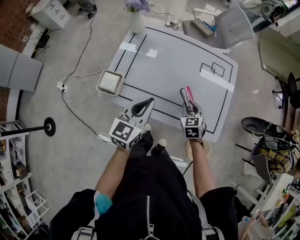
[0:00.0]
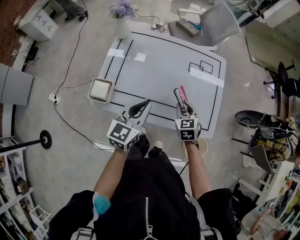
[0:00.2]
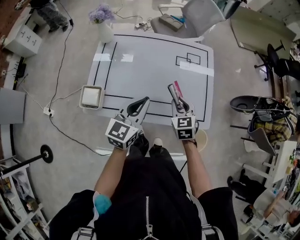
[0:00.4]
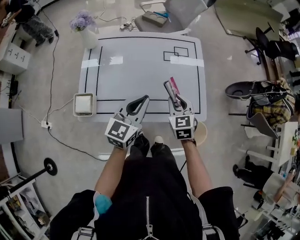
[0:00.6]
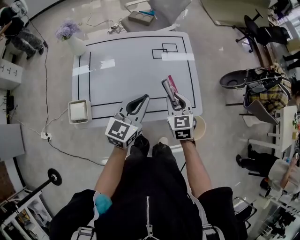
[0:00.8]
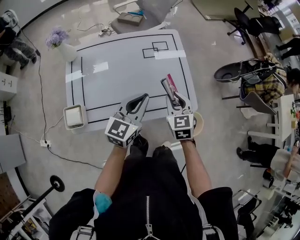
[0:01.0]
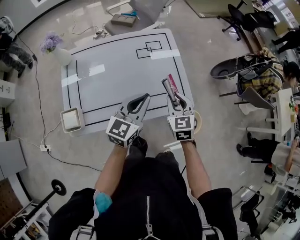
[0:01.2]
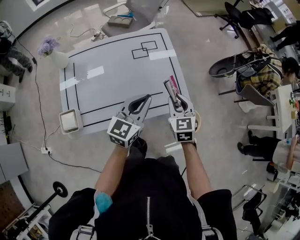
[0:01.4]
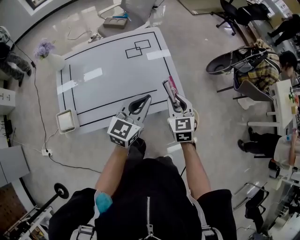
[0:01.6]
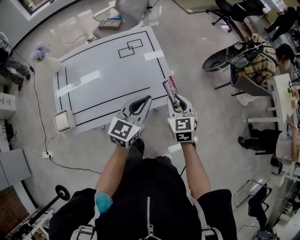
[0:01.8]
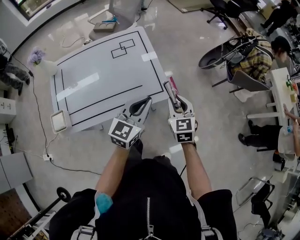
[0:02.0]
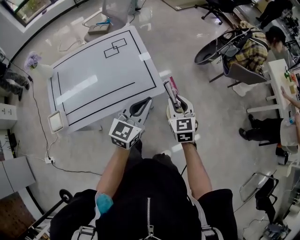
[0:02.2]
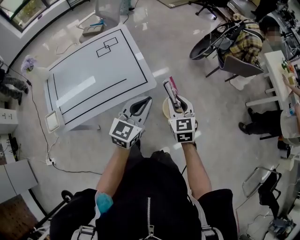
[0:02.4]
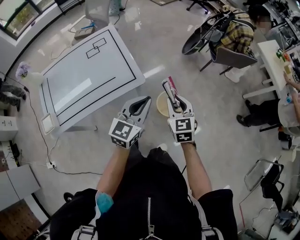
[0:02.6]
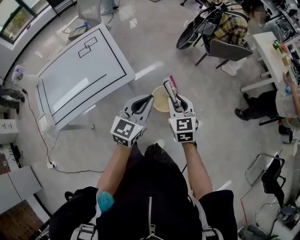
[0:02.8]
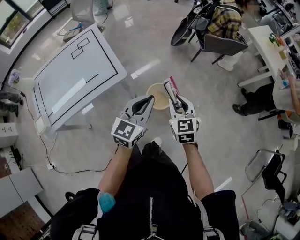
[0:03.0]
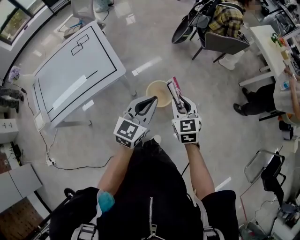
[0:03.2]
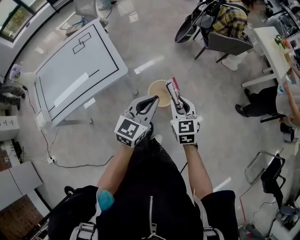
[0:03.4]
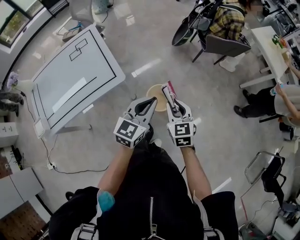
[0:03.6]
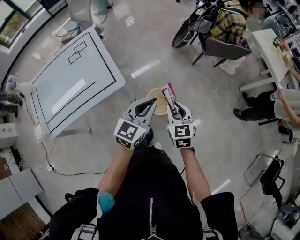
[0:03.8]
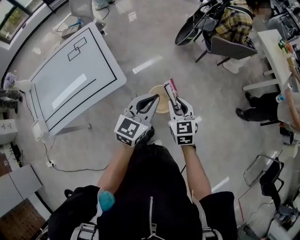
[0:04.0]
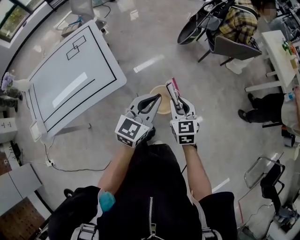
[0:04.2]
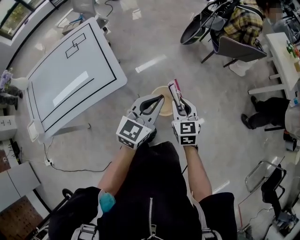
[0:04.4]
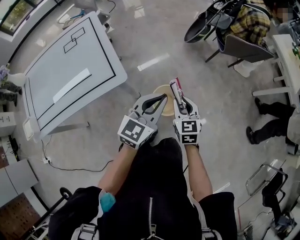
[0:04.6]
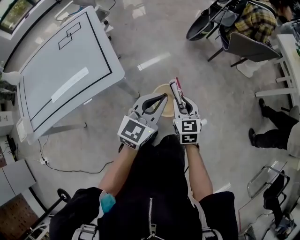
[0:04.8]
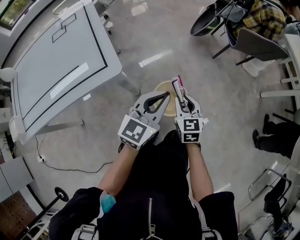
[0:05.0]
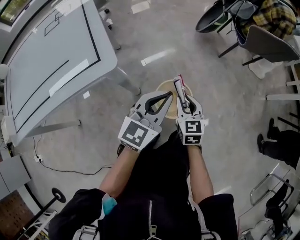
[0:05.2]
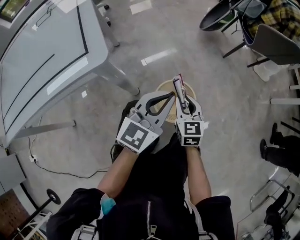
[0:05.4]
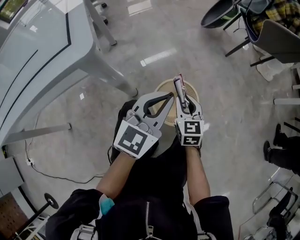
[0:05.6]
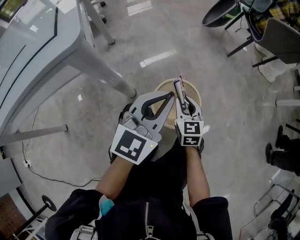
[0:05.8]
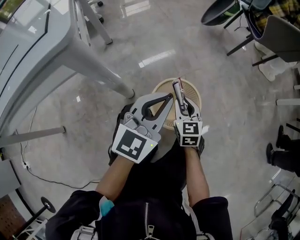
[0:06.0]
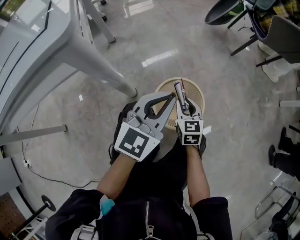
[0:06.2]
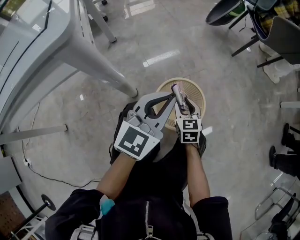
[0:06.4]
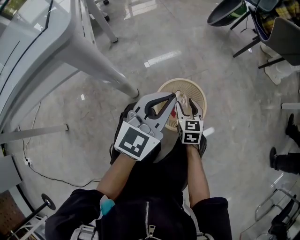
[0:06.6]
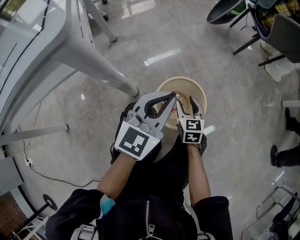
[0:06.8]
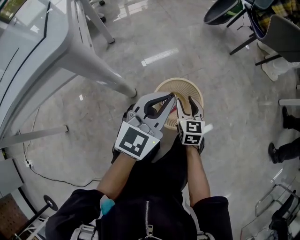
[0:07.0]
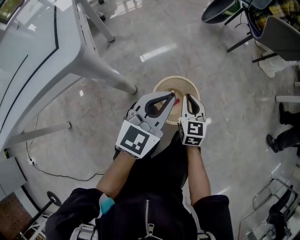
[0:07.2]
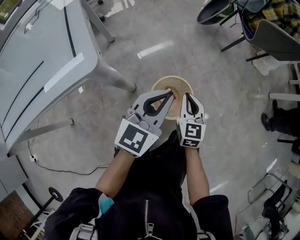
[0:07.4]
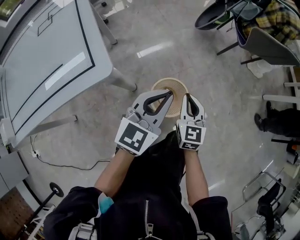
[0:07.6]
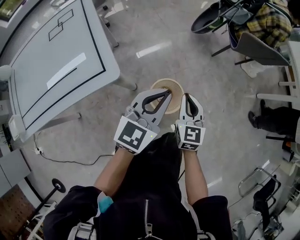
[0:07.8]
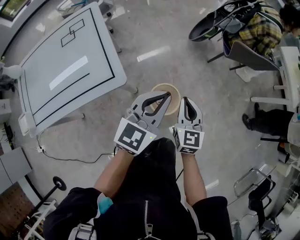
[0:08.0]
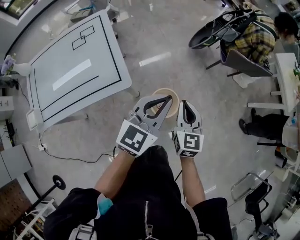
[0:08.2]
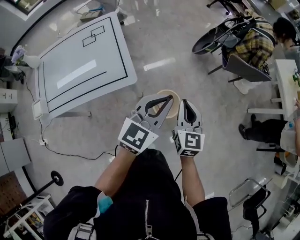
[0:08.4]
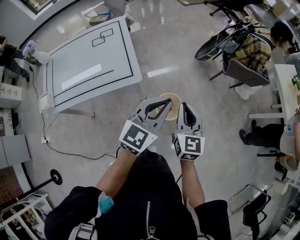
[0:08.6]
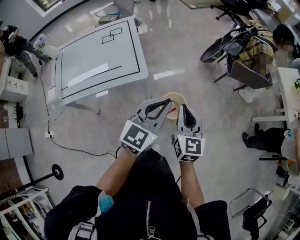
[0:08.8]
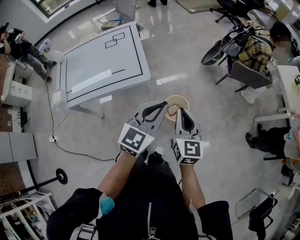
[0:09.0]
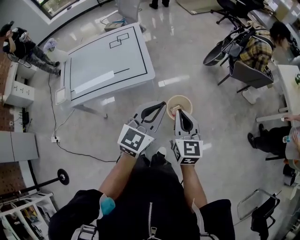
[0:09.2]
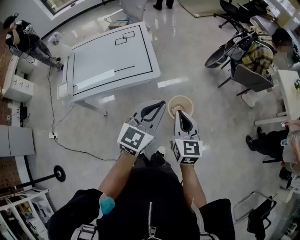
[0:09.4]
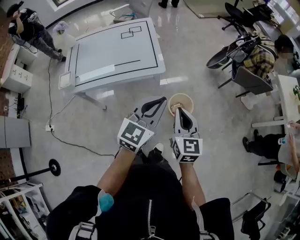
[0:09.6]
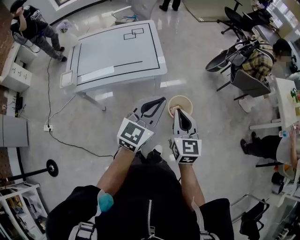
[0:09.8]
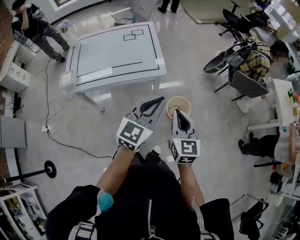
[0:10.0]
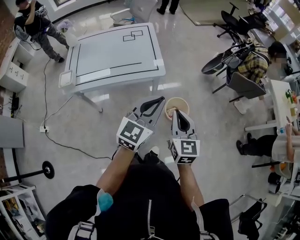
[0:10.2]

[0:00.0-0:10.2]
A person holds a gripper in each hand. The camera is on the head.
0.0 to 1.4 s: The right gripper moves roughly 20 cm, and rotates about 30 degrees; the left gripper moves some 20 cm, and changes its angle by approximately 30 degrees.
1.4 to 3.0 s: Both grippers are carried to the right, some 40 cm.
3.0 to 4.4 s: The left gripper heads forward and downward, covering roughly 15 cm. The right gripper goes about 15 cm downward and forward.
4.4 to 5.8 s: Both grippers move downward, about 40 cm.
5.8 to 7.2 s: The right gripper reaches approximately 10 cm downward, then returns, and opens, then closes again.
7.2 to 8.8 s: Both grippers move upward, about 60 cm.
8.8 to 10.2 s: The grippers both shift backward and to the left by roughly 20 cm.

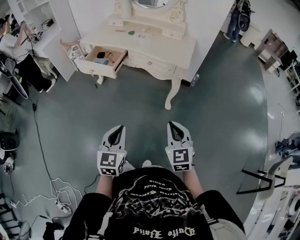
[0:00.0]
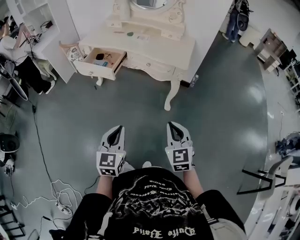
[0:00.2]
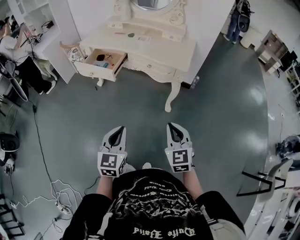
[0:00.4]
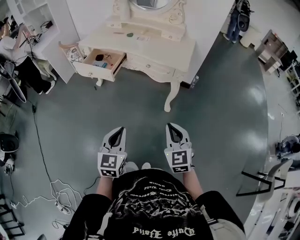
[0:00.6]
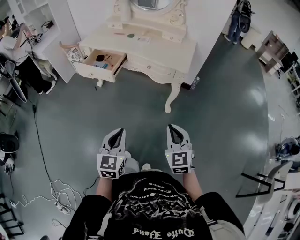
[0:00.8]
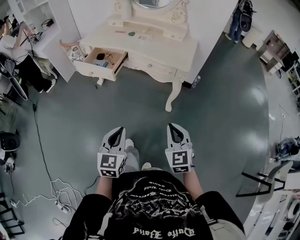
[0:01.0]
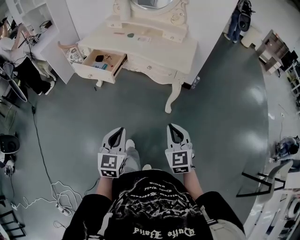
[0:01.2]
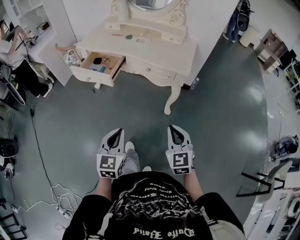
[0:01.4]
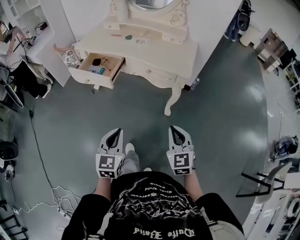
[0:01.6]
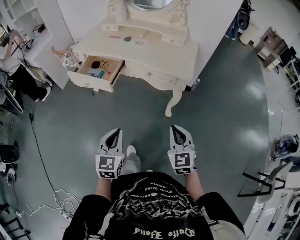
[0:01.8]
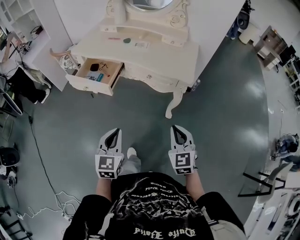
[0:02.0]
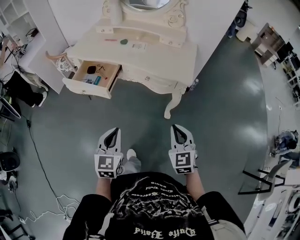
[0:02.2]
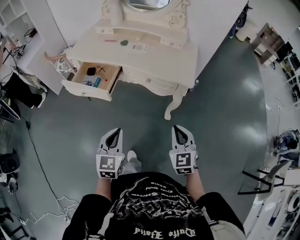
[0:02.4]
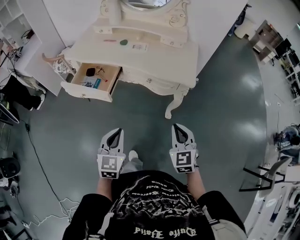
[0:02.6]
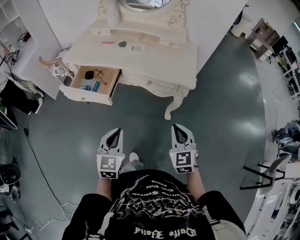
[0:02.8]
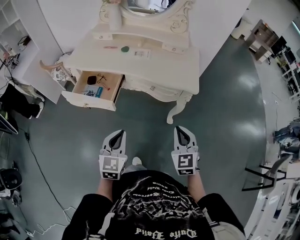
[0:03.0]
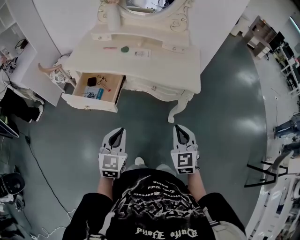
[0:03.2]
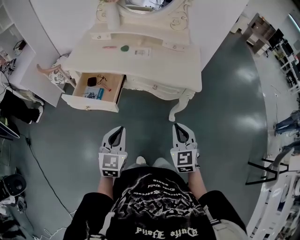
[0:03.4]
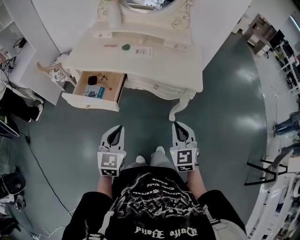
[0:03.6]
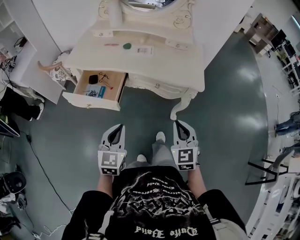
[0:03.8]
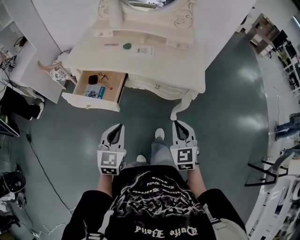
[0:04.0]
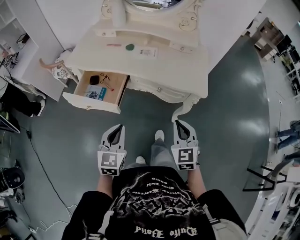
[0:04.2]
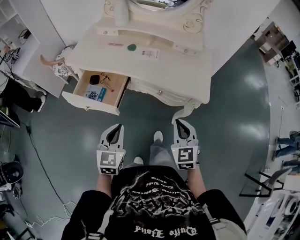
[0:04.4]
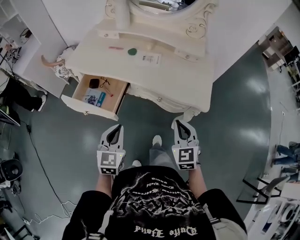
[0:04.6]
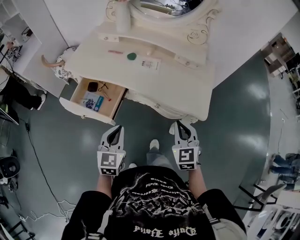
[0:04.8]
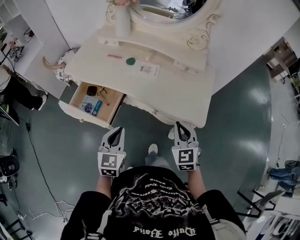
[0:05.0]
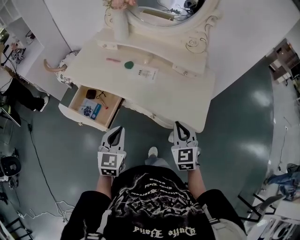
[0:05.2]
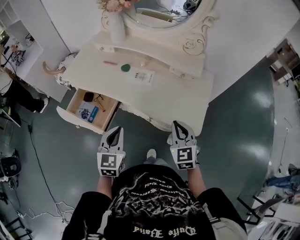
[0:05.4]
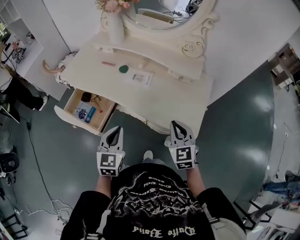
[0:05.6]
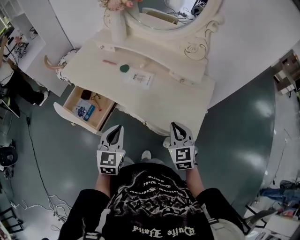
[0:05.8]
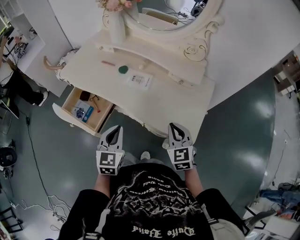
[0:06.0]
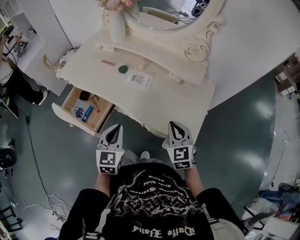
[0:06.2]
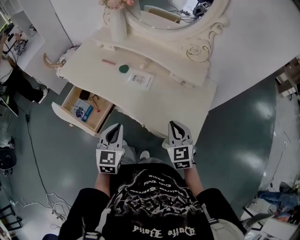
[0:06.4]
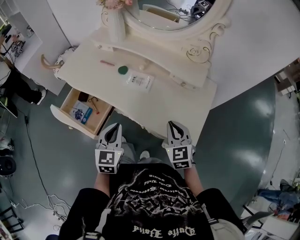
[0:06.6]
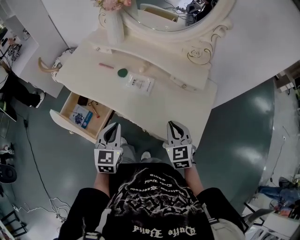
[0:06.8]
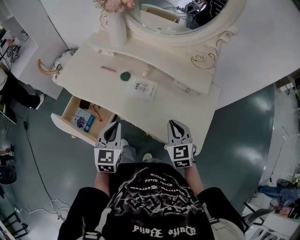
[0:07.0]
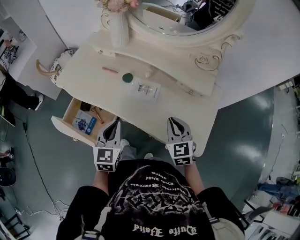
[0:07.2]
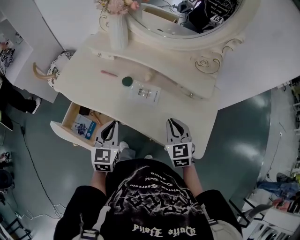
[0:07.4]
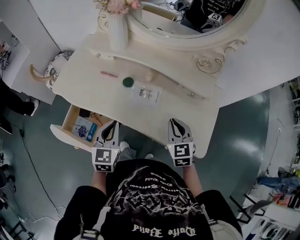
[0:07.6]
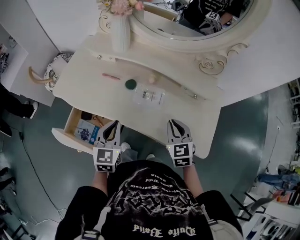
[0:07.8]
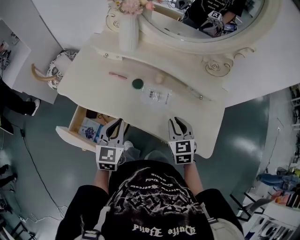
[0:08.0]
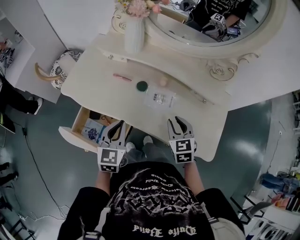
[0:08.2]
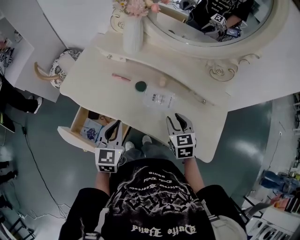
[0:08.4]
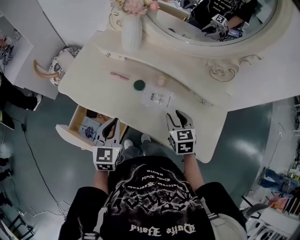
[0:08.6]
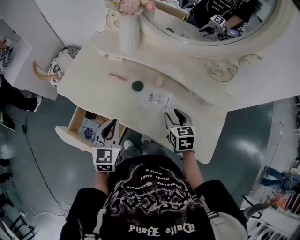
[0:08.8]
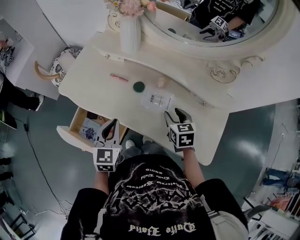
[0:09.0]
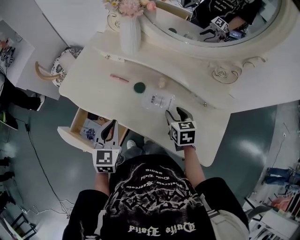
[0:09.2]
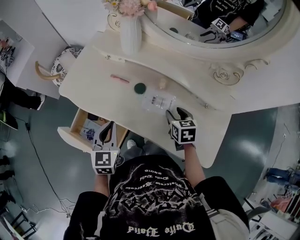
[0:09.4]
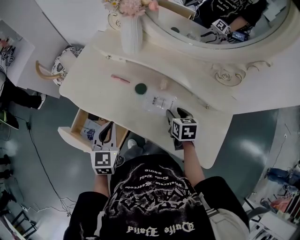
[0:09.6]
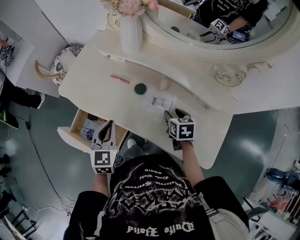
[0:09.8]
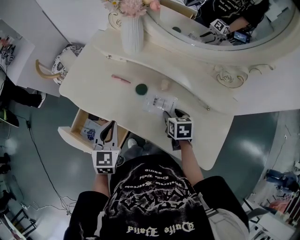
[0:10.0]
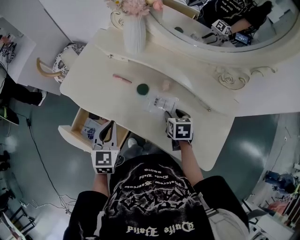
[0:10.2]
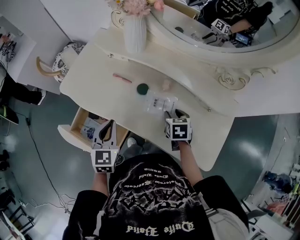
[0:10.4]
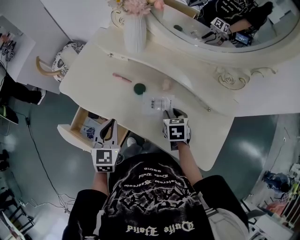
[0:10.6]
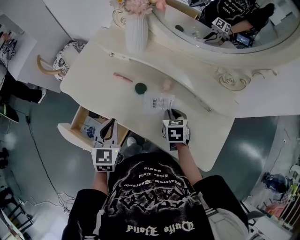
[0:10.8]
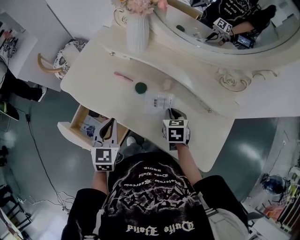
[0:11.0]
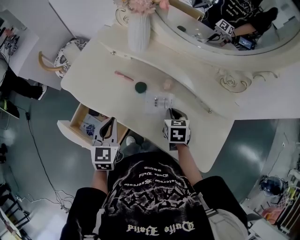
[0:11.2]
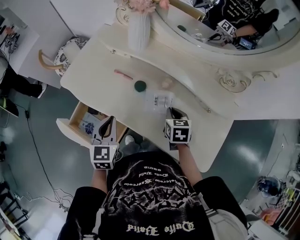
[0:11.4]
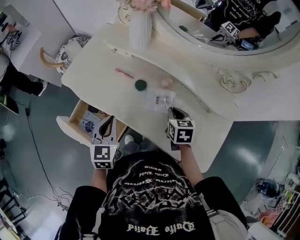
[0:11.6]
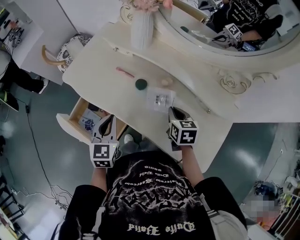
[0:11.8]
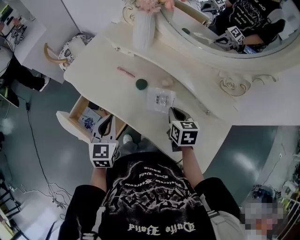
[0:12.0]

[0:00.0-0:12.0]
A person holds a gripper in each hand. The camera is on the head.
0.0 to 1.6 s: Both grippers move forward, roughly 10 cm.
1.6 to 3.0 s: Both grippers travel together forward and to the left, roughly 15 cm.
3.0 to 4.4 s: Both grippers travel together forward, roughly 10 cm.
4.4 to 6.0 s: The grippers both shift forward and to the right by some 20 cm.
6.0 to 7.6 s: Both grippers move forward and to the left, about 15 cm.
7.6 to 9.0 s: The right gripper travels forward by approximately 10 cm, and opens its fingers. The left gripper shifts by some 5 cm.
9.0 to 10.4 s: The right gripper is displaced downward by roughly 5 cm.
10.4 to 12.0 s: The right gripper heads upward, covering roughly 5 cm, and closes its fingers.

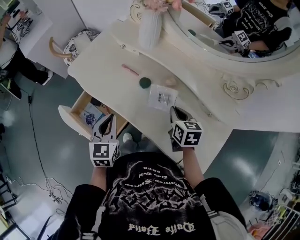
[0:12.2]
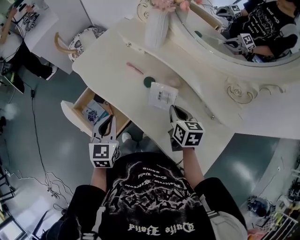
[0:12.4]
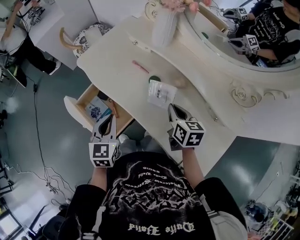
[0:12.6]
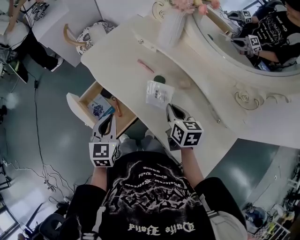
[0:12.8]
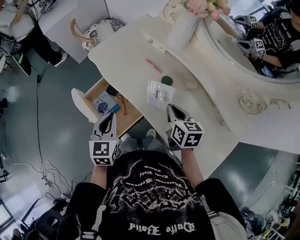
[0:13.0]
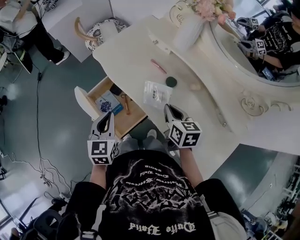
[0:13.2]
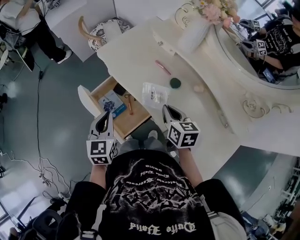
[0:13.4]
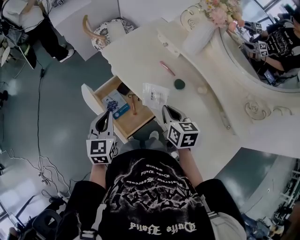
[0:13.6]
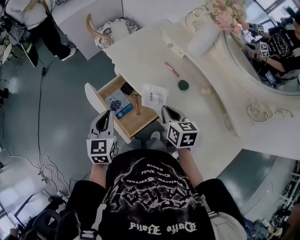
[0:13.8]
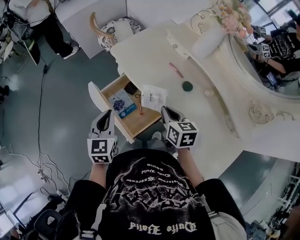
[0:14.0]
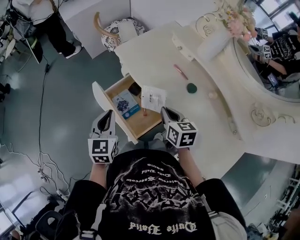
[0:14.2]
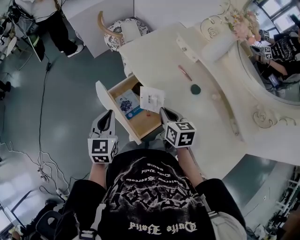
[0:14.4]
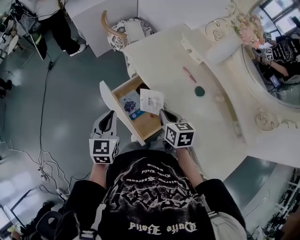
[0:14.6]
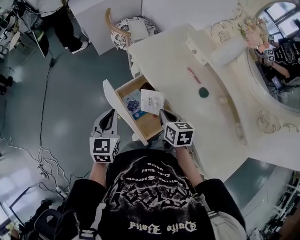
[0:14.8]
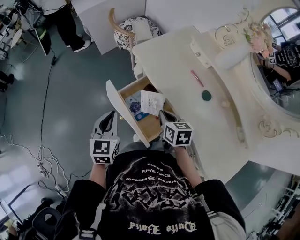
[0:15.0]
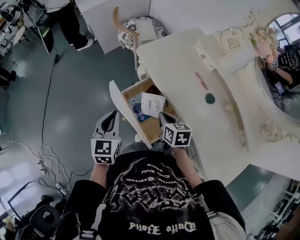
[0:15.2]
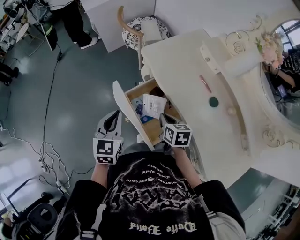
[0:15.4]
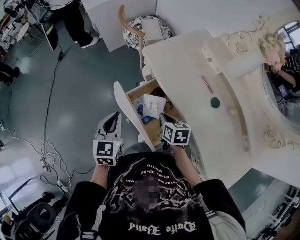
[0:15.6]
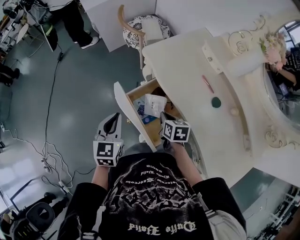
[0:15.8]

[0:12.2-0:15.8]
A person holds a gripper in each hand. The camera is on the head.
12.2 to 14.0 s: Both grippers move to the left, about 20 cm. The right gripper swivels approximately 20 degrees.
14.0 to 15.8 s: The left gripper travels to the left by some 10 cm; the right gripper heads to the left, downward and forward, covering roughly 15 cm.
